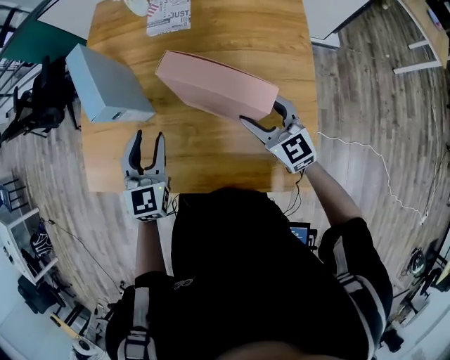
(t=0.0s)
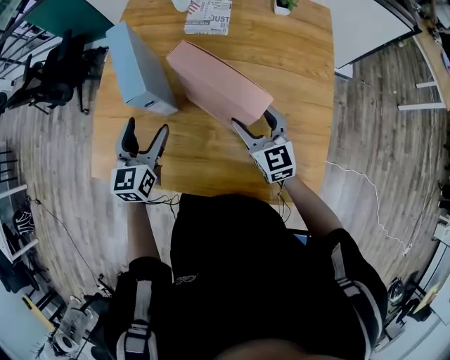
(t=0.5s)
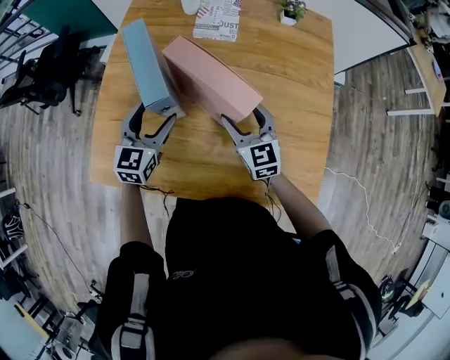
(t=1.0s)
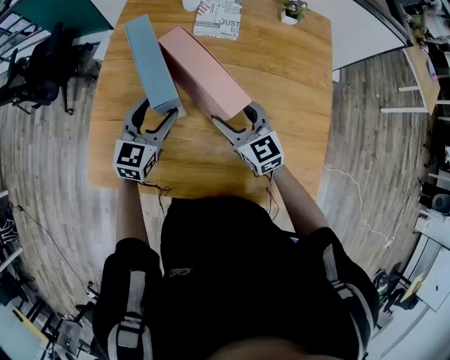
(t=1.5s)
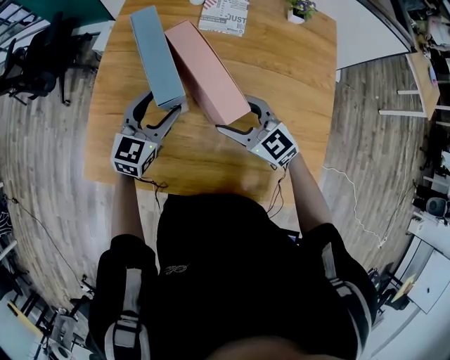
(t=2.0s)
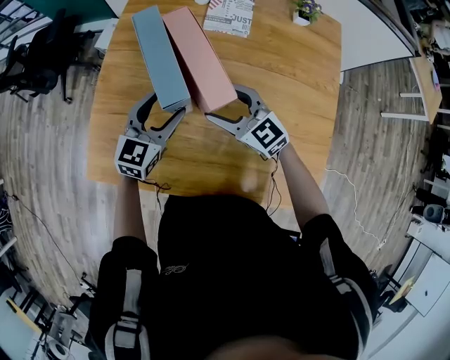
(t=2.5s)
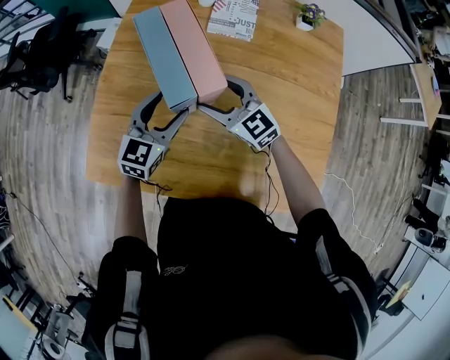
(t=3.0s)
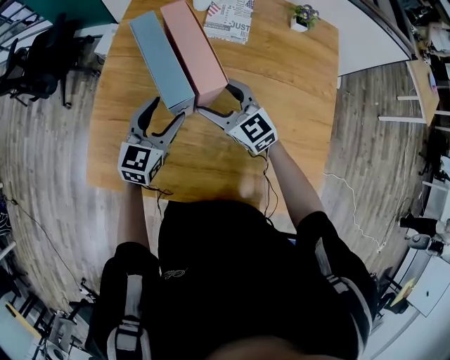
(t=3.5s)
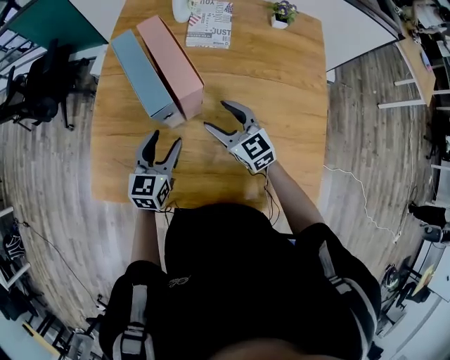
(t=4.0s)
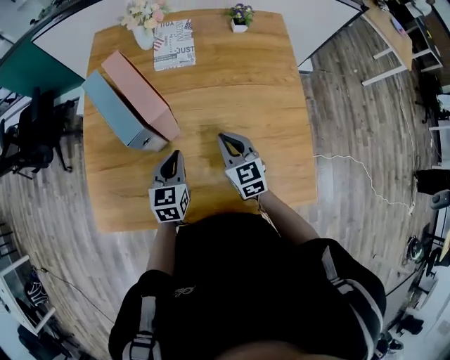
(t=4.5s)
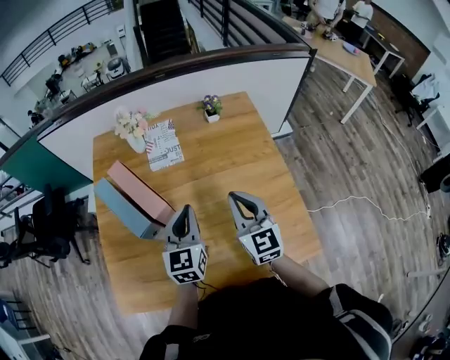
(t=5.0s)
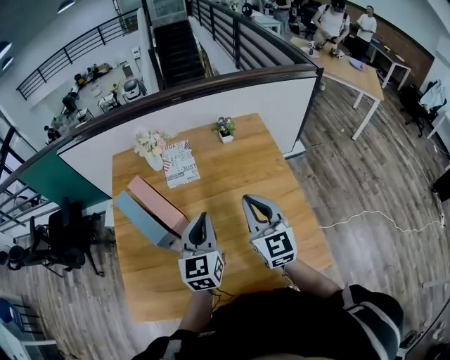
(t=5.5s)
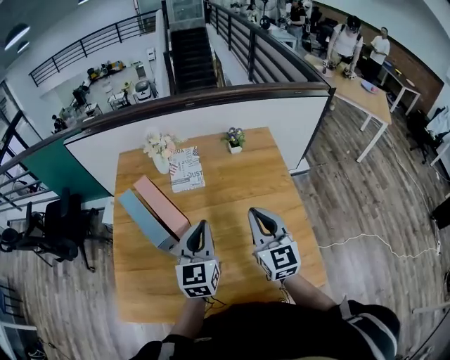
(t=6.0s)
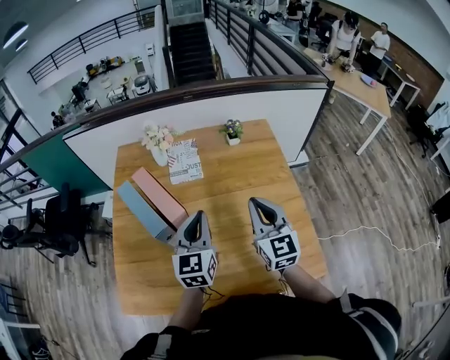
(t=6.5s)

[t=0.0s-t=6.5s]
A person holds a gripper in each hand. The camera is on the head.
t=0.0s to t=2.0s: The right gripper travels to the left by roughly 25 cm, and swivels roughly 20 degrees; the left gripper heads forward and to the left, covering roughly 15 cm, and rotates some 20 degrees.
t=2.0s to t=4.5s: The left gripper goes approximately 10 cm to the right, backward and downward, and closes. The right gripper is displaced to the right by about 10 cm, rotates some 40 degrees, and closes.
t=4.5s to t=6.5s: The right gripper travels upward and to the right by about 25 cm, and turns by roughly 30 degrees, while the left gripper heads upward, covering approximately 20 cm, and swivels some 20 degrees.

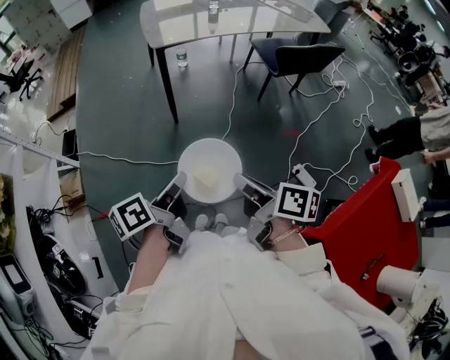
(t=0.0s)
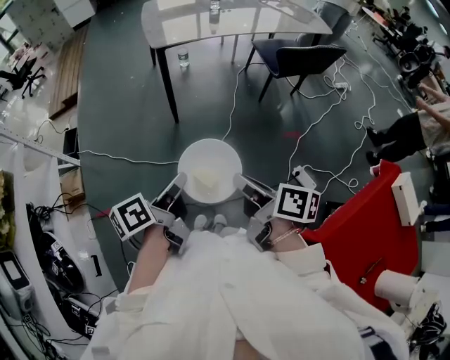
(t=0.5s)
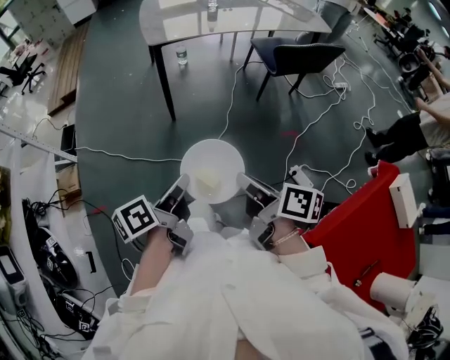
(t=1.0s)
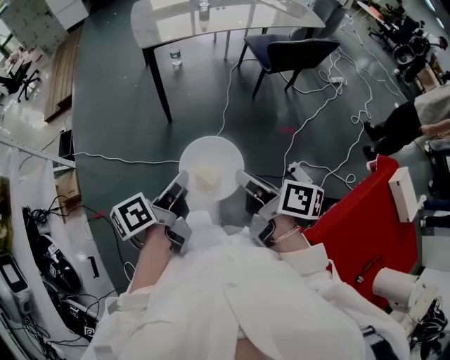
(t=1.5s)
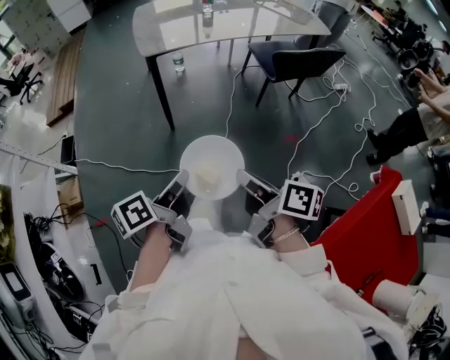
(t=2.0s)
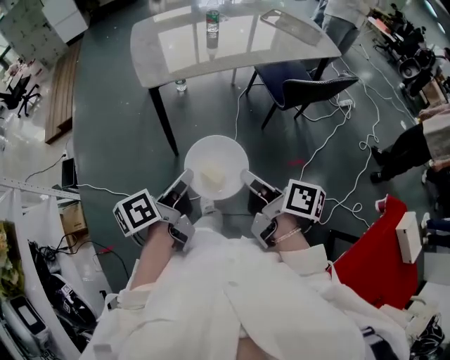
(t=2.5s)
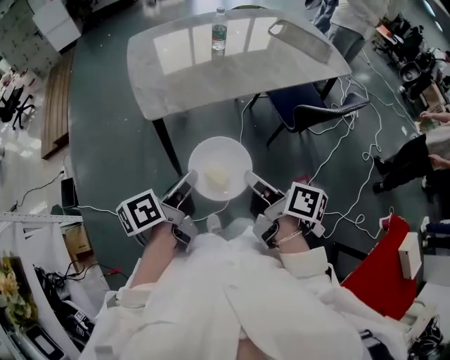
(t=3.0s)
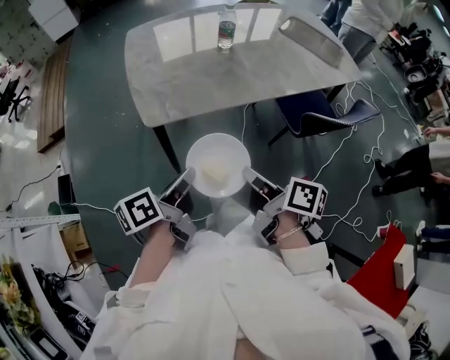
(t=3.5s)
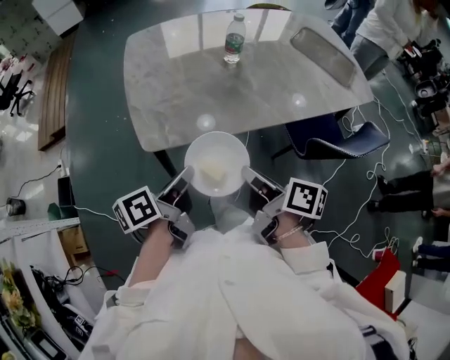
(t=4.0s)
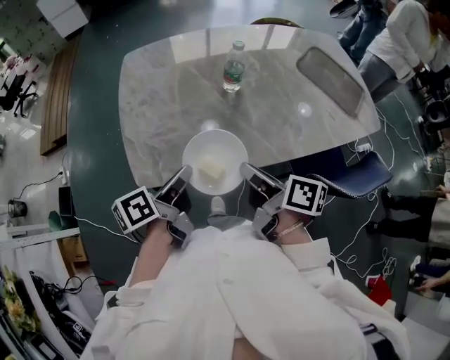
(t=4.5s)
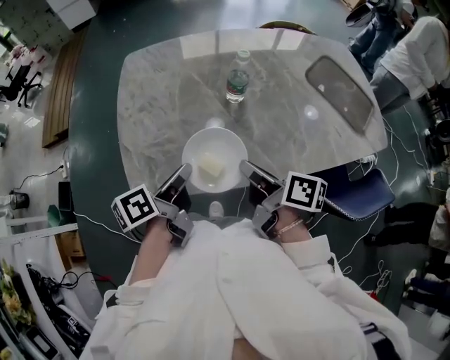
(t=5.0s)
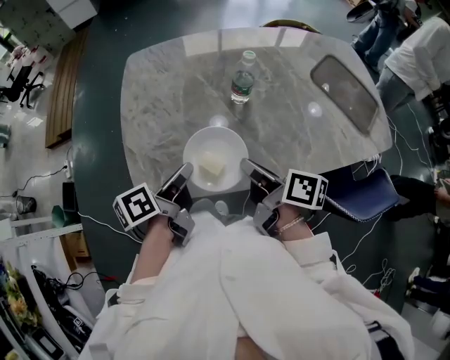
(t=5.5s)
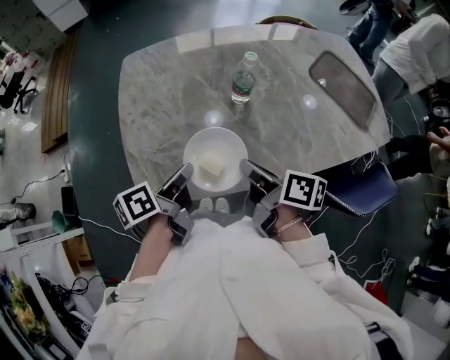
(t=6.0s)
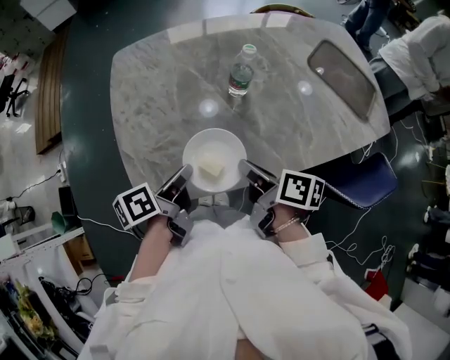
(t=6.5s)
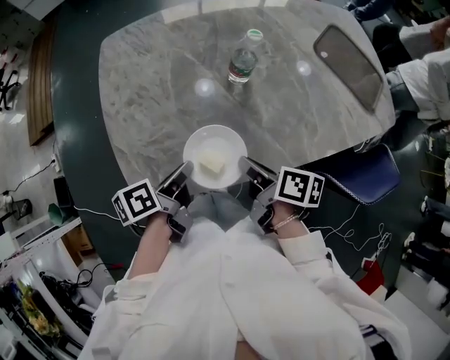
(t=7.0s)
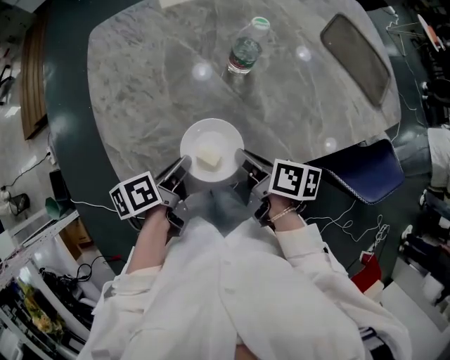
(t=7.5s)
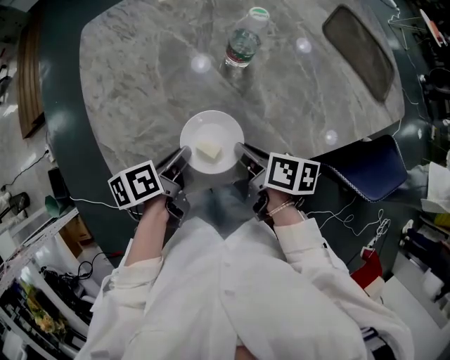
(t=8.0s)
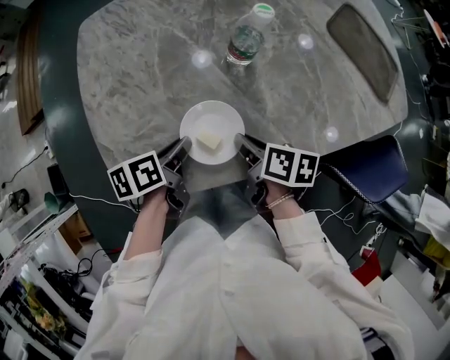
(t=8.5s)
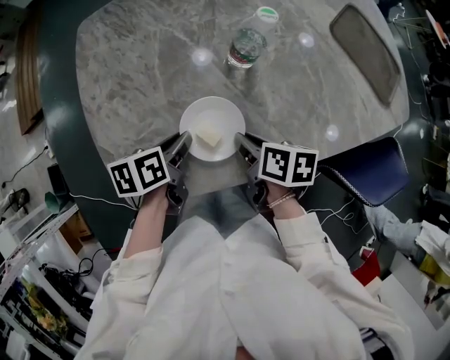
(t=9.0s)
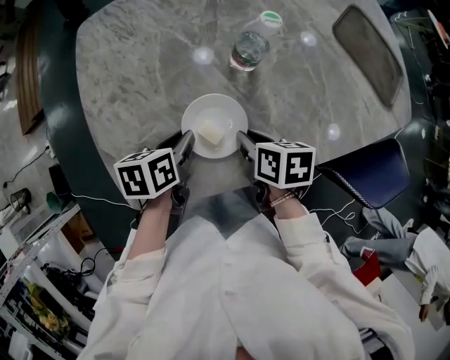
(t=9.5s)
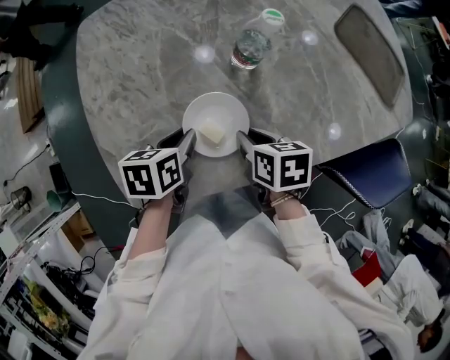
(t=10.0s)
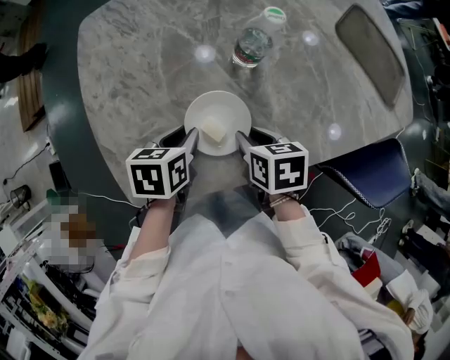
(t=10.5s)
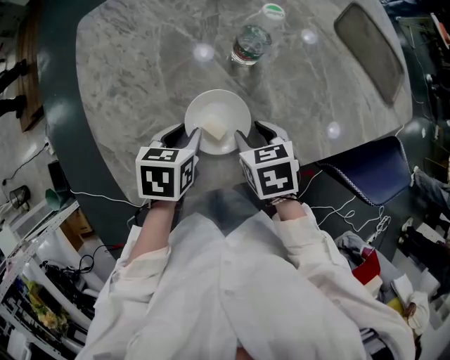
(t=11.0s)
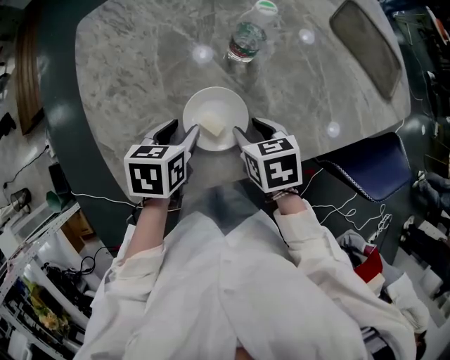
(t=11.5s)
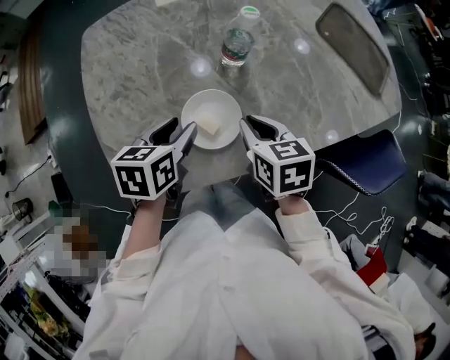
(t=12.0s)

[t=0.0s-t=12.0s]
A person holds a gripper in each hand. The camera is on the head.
t=0.0s to t=2.0s: The two grippers go about 10 cm forward and to the right.
t=2.0s to t=4.0s: The pair of grippers is taken forward, about 50 cm.
t=4.0s to t=6.0s: The two grippers go about 20 cm forward.
t=6.0s to t=8.0s: Both grippers move downward, approximately 15 cm. The left gripper changes its angle by roughly 20 degrees.
t=8.0s to t=10.0s: The right gripper swivels some 30 degrees; the left gripper heads forward, covering some 5 cm, and turns by some 30 degrees.
t=10.0s to t=12.0s: Both grippers move upward, roughly 5 cm. The right gripper opens and closes again. Meanwhile the left gripper opens its fingers.

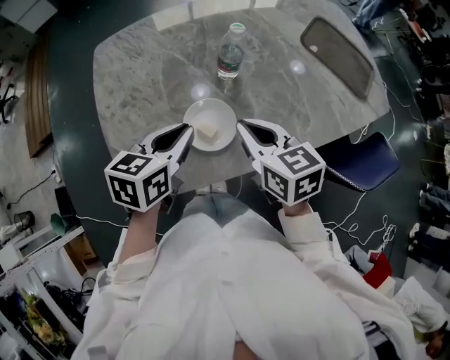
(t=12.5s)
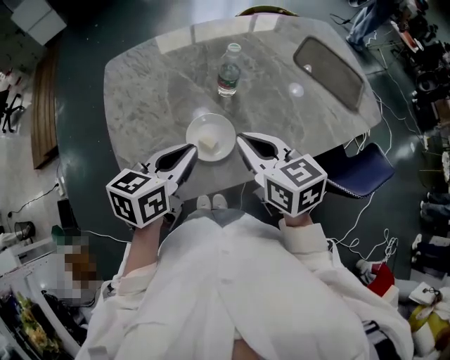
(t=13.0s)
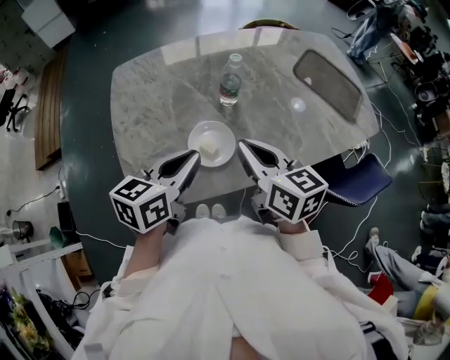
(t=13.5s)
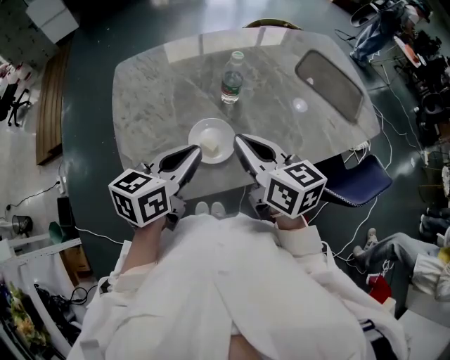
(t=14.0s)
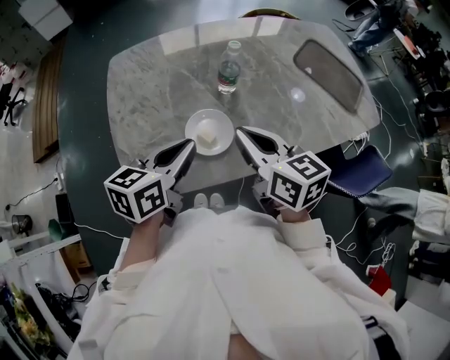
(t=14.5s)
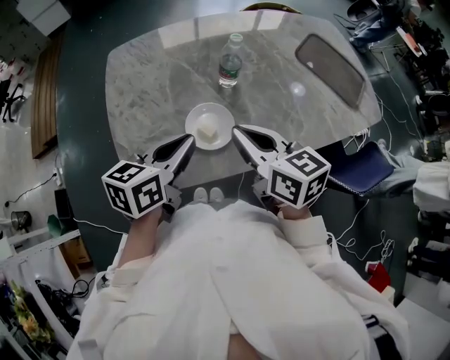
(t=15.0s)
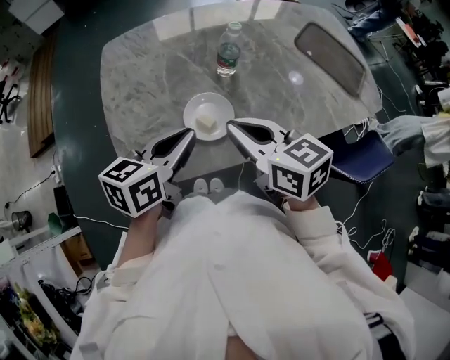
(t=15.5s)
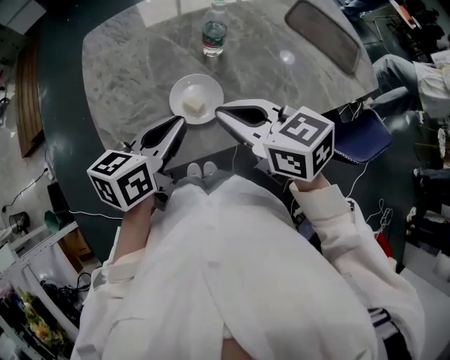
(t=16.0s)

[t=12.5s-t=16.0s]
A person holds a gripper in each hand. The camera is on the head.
t=12.5s to t=14.5s: The two grippers go roughly 5 cm upward.
t=14.5s to t=16.0s: The grippers make only small movements.

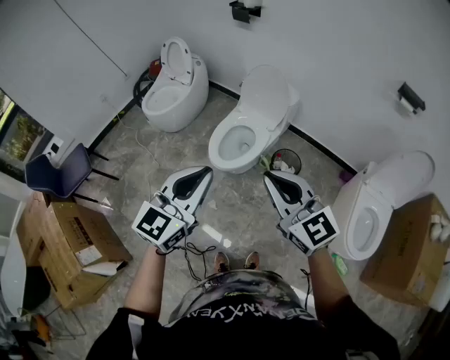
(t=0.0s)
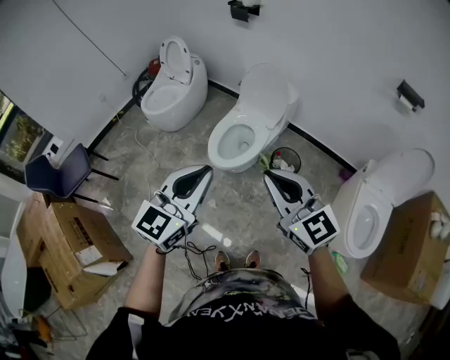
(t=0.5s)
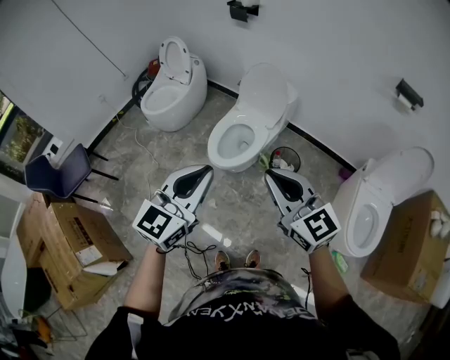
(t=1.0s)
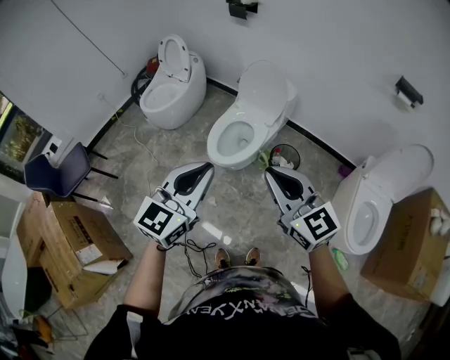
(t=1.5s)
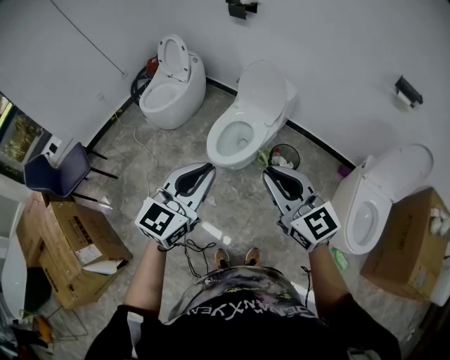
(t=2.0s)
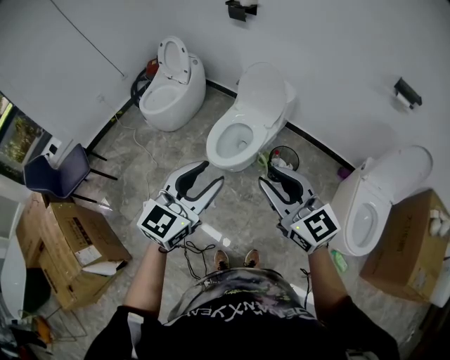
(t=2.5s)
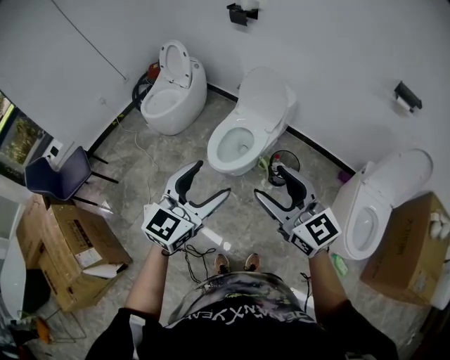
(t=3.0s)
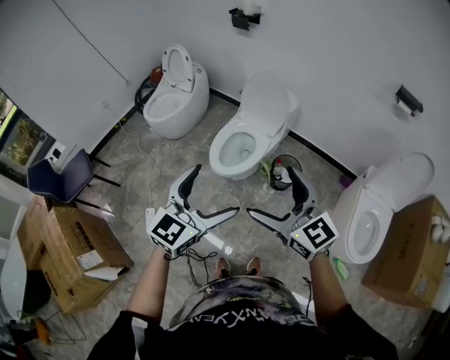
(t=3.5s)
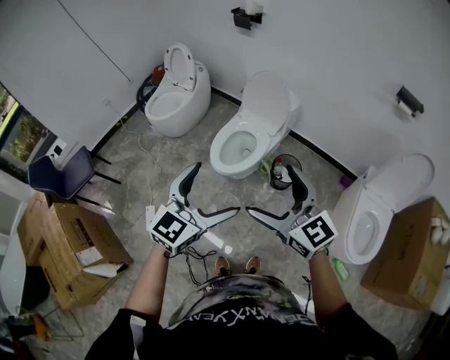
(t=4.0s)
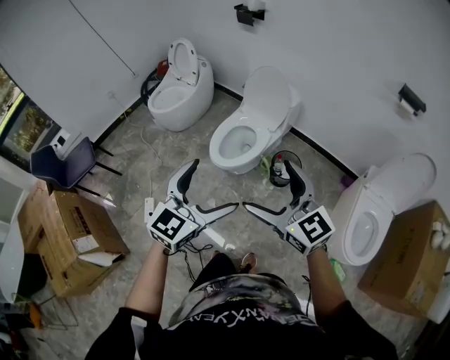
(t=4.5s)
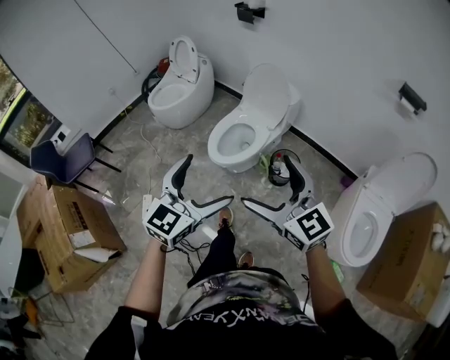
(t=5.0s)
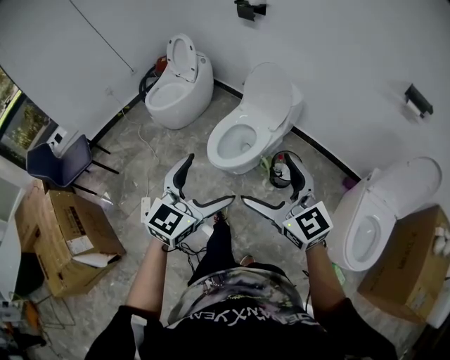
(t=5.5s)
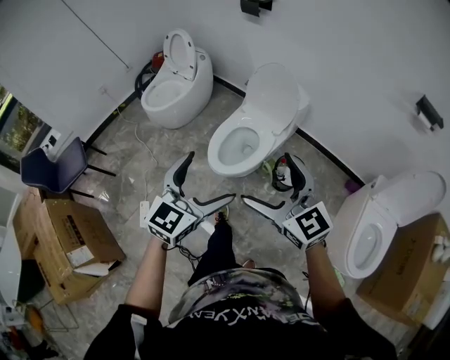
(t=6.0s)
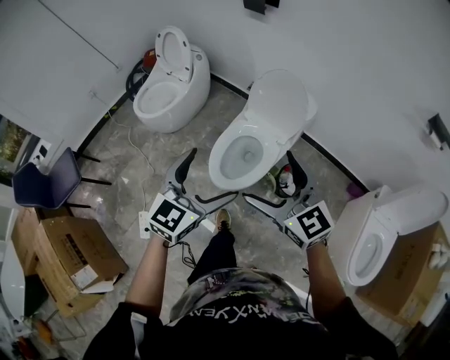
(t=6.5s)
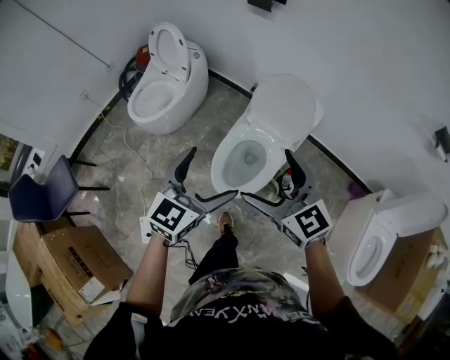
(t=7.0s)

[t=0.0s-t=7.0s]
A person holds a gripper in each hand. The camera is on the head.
t=0.0s to t=2.0s: The grippers stay close to where they were, moving slightly.
t=2.0s to t=3.5s: The left gripper opens. The right gripper opens its fingers.
t=3.5s to t=5.0s: The left gripper shifts by roughly 5 cm. The right gripper moves approximately 5 cm.
t=5.0s to t=7.0s: Both grippers are carried forward, about 40 cm.
